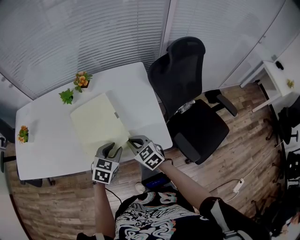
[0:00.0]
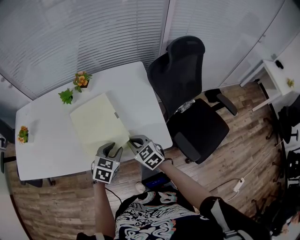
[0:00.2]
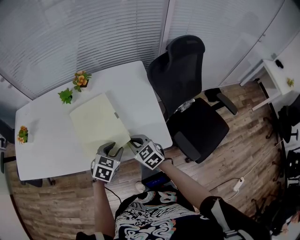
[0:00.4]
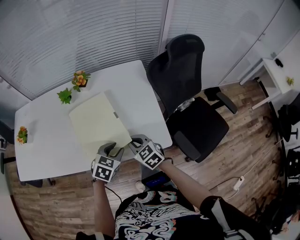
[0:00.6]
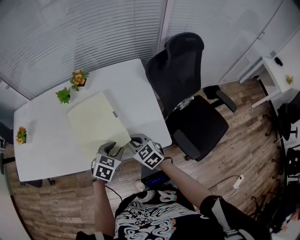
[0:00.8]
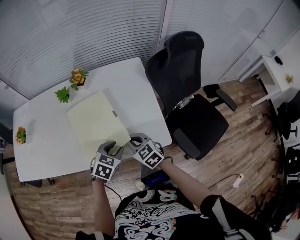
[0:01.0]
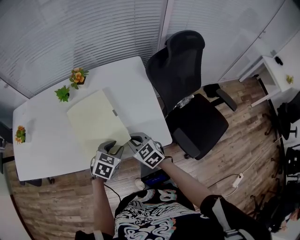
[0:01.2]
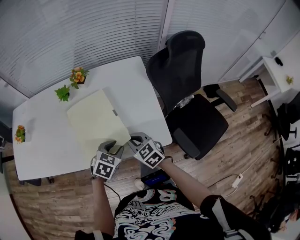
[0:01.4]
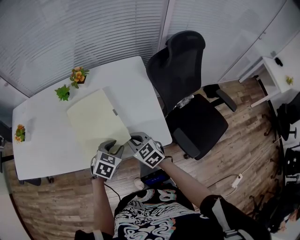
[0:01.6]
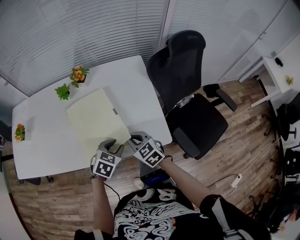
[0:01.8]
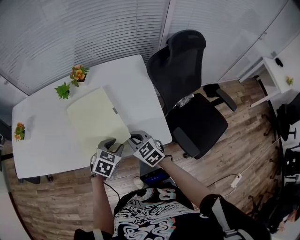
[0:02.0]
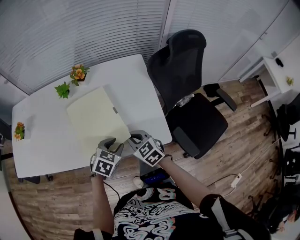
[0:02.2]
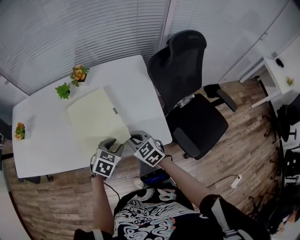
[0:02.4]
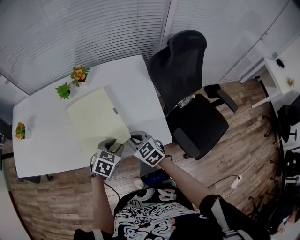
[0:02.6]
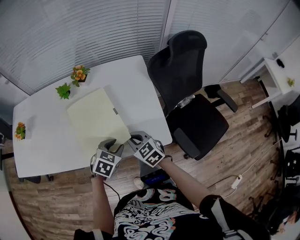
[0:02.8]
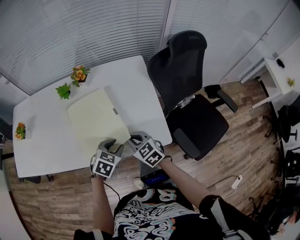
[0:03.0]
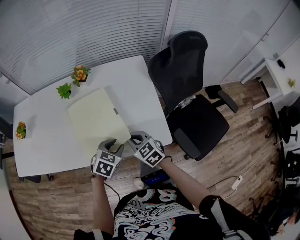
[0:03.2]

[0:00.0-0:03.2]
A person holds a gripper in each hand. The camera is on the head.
0:00.0 to 0:01.6: The grippers make only small movements.
0:01.6 to 0:03.2: Both grippers stay put.

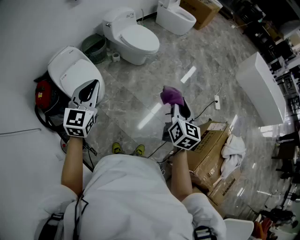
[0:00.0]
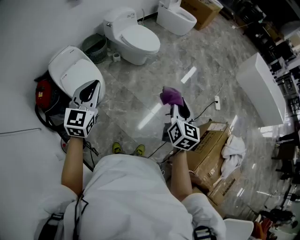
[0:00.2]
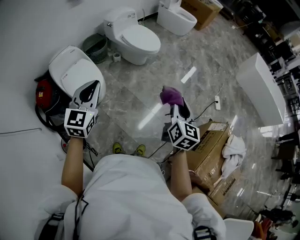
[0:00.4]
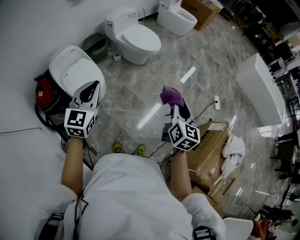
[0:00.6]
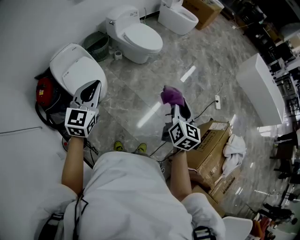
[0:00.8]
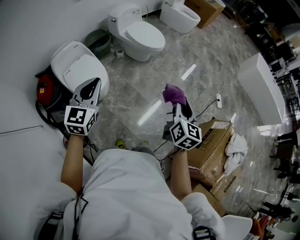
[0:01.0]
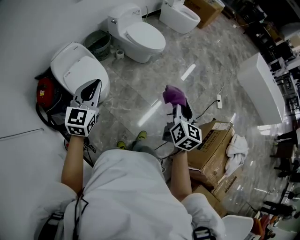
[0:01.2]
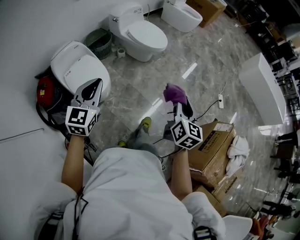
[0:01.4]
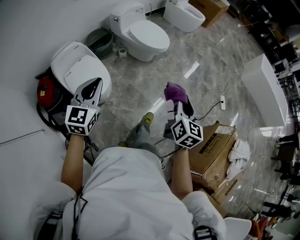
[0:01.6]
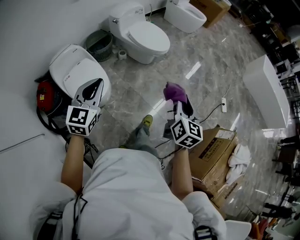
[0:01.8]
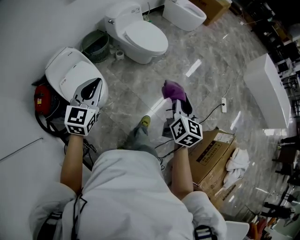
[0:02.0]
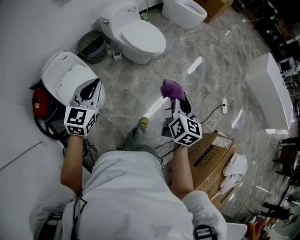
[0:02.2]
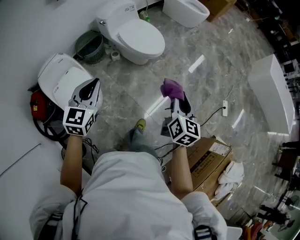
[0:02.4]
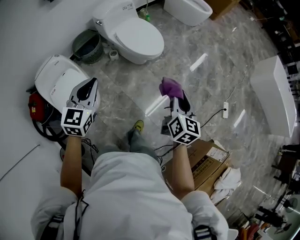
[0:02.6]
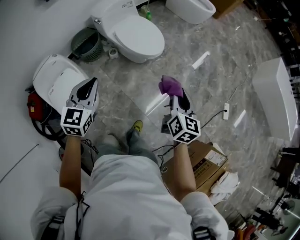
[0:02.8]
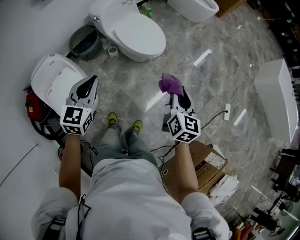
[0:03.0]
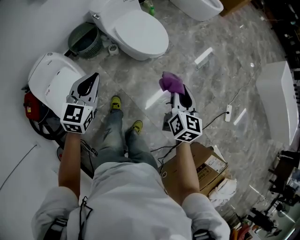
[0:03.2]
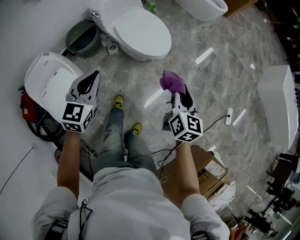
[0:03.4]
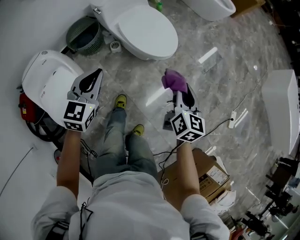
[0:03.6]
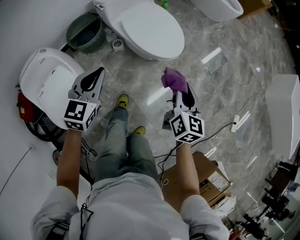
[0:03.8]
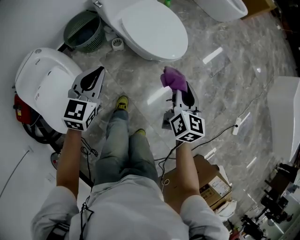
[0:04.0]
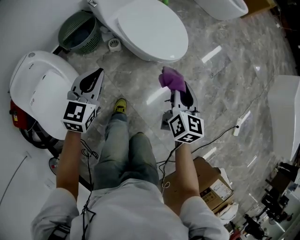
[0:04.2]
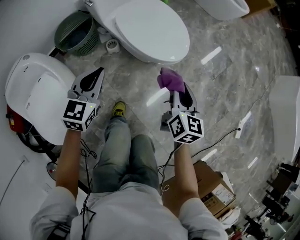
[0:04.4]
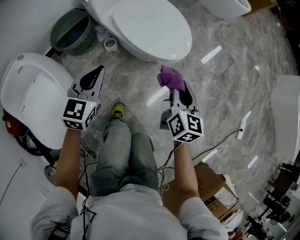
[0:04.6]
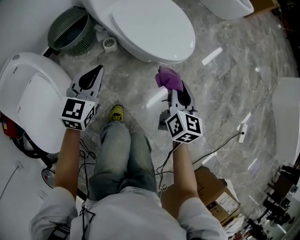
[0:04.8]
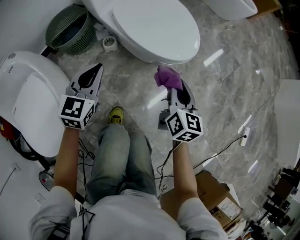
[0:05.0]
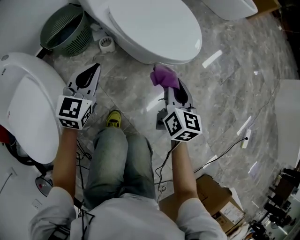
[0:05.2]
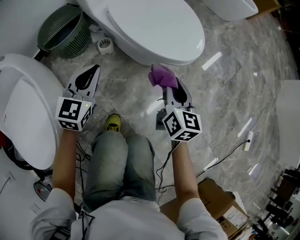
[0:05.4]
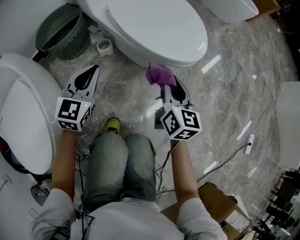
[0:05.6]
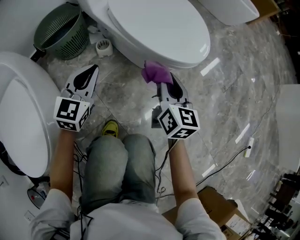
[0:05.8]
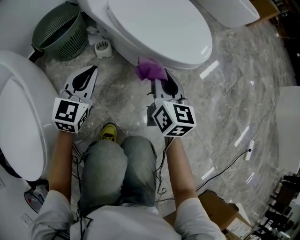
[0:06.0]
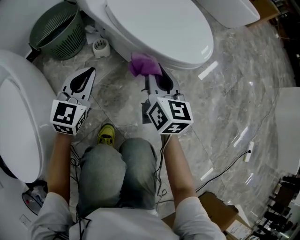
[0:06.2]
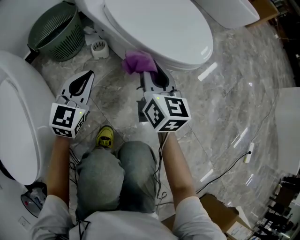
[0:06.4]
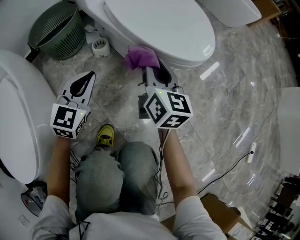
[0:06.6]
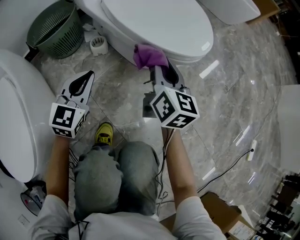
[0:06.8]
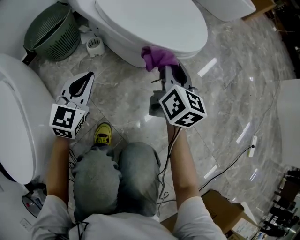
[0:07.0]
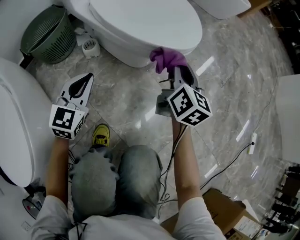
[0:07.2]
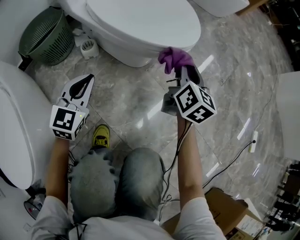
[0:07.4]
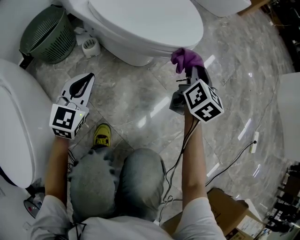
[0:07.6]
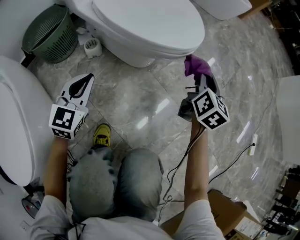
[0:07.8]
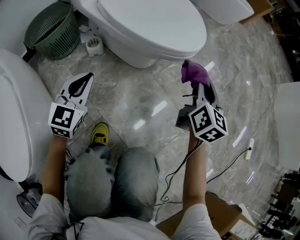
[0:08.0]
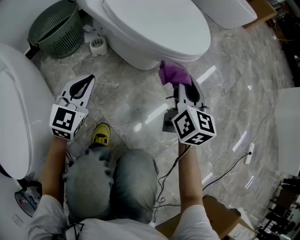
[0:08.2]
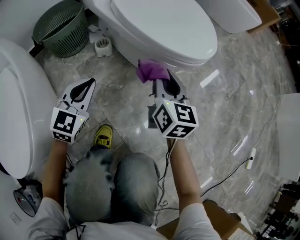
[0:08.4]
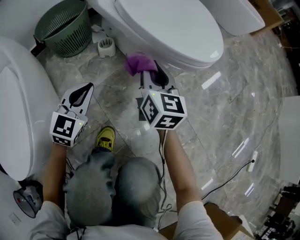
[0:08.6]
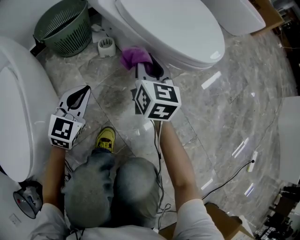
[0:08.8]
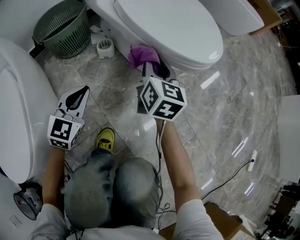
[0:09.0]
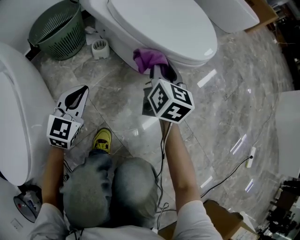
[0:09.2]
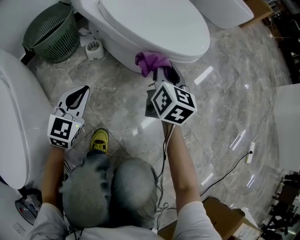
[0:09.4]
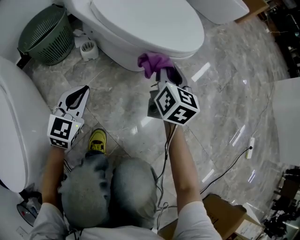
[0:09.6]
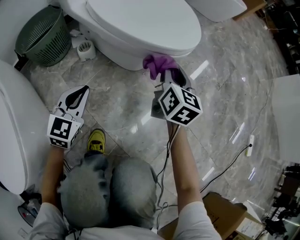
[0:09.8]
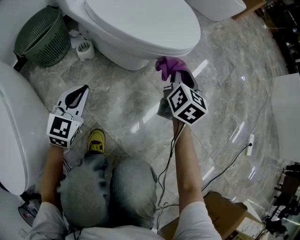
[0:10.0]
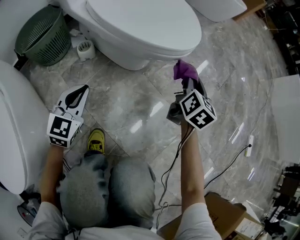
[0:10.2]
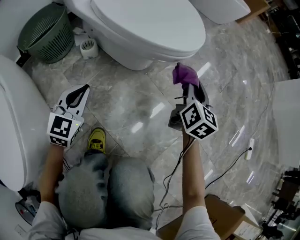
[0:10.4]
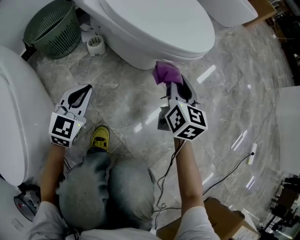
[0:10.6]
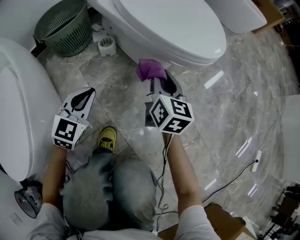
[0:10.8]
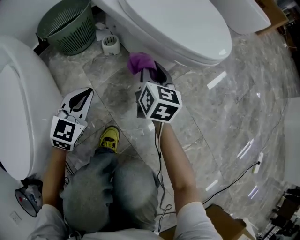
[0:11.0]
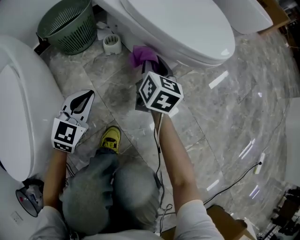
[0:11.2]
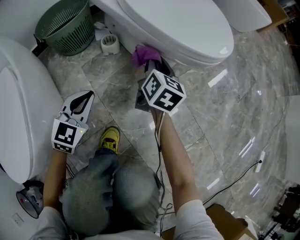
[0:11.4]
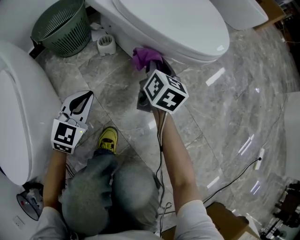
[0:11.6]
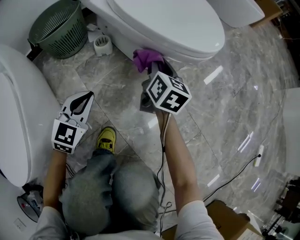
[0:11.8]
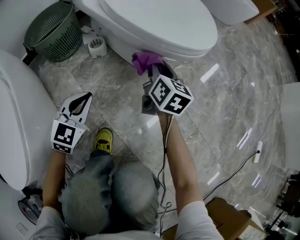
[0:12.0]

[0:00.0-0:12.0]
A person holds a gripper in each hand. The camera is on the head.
0:00.0 to 0:01.6: The right gripper heads to the left and forward, covering roughly 10 cm. The left gripper moves to the left, about 10 cm.
0:01.6 to 0:03.0: Both grippers travel together forward, roughly 40 cm.
0:03.0 to 0:04.4: The grippers both shift downward and forward by roughly 35 cm.
0:04.4 to 0:06.0: The grippers both shift downward by some 25 cm.
0:06.0 to 0:07.6: The right gripper heads to the right, covering roughly 20 cm, and rotates about 20 degrees. The left gripper travels downward and to the right by some 10 cm.
0:07.6 to 0:09.0: The right gripper goes roughly 25 cm to the left, and changes its angle by approximately 20 degrees. The left gripper moves to the left, about 5 cm.
0:09.0 to 0:10.4: The right gripper travels to the right by roughly 25 cm, while the left gripper shifts approximately 5 cm to the right.
0:10.4 to 0:12.0: The right gripper shifts approximately 15 cm to the left.

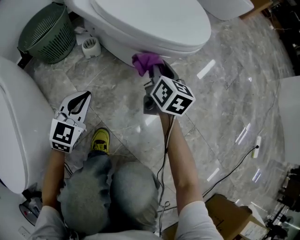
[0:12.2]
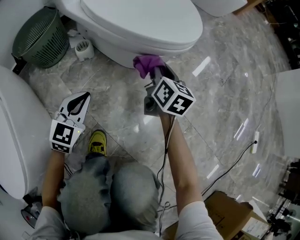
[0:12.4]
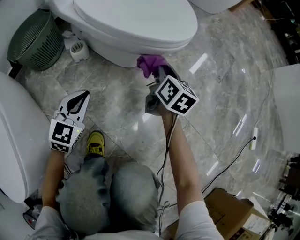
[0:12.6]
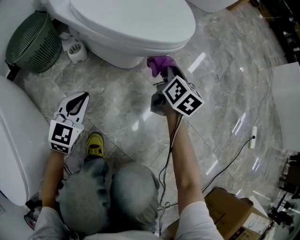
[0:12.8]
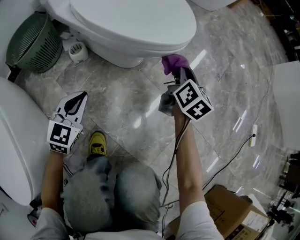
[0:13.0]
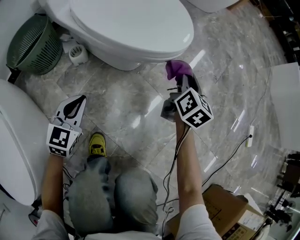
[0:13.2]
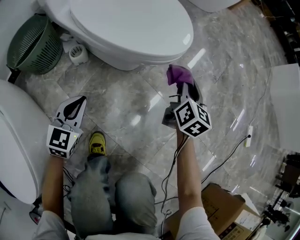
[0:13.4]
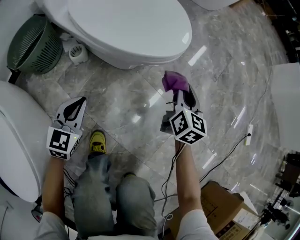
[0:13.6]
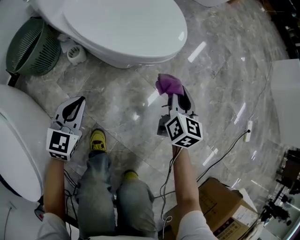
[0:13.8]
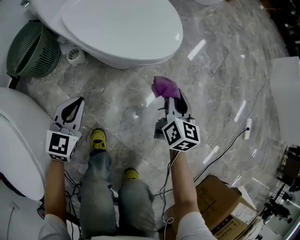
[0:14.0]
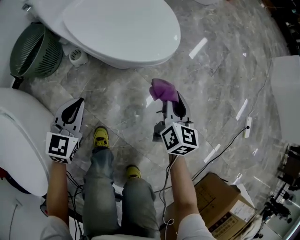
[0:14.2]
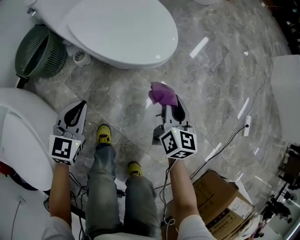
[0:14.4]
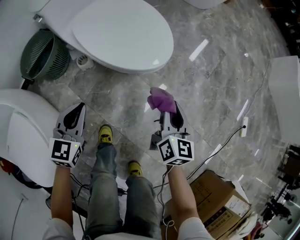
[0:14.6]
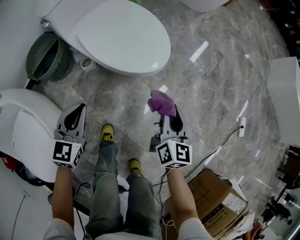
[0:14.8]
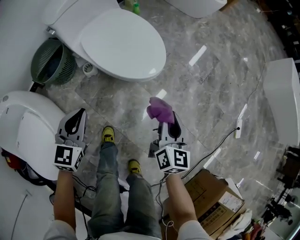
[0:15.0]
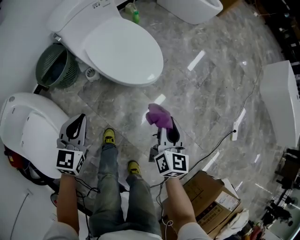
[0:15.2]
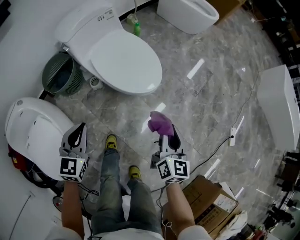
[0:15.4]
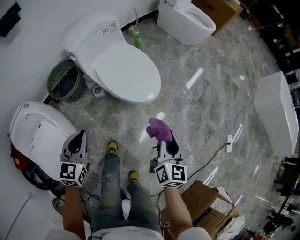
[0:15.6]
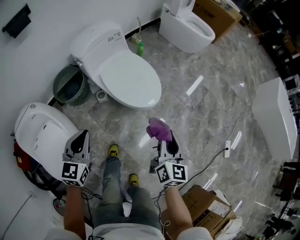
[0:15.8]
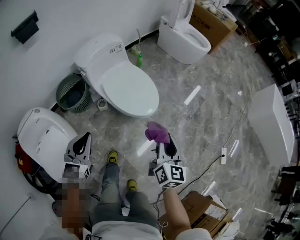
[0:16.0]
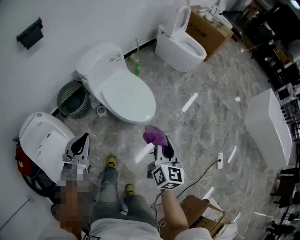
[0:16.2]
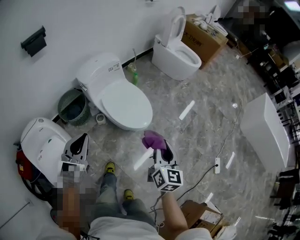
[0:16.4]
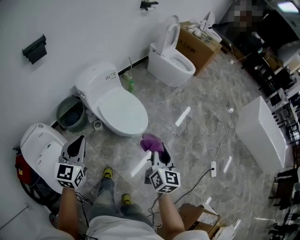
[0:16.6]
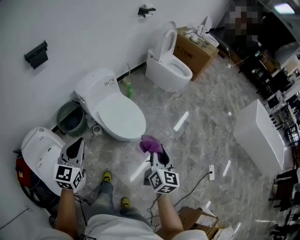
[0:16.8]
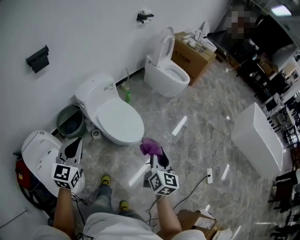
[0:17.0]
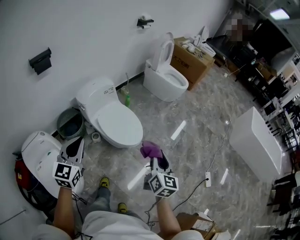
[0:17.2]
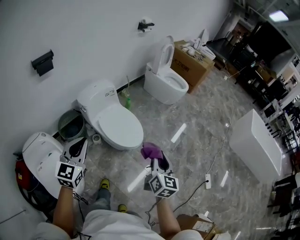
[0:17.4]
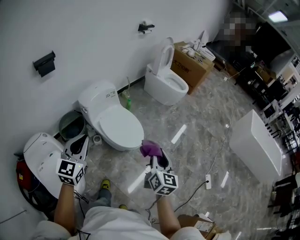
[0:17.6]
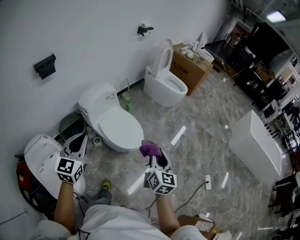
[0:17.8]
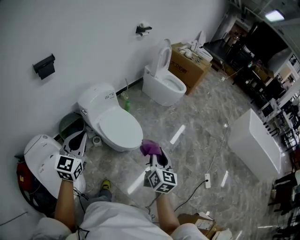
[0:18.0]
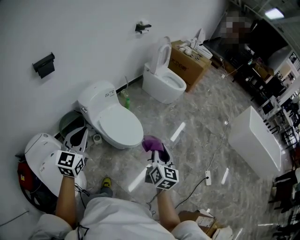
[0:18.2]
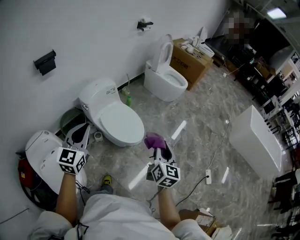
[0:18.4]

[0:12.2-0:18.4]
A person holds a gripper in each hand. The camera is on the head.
0:12.2 to 0:13.8: The left gripper goes approximately 5 cm upward. The right gripper heads to the right, covering about 15 cm.
0:13.8 to 0:15.4: Both grippers move upward, approximately 35 cm.
0:15.4 to 0:16.8: The two grippers go approximately 30 cm upward.
0:16.8 to 0:18.4: Both grippers move upward, about 10 cm.

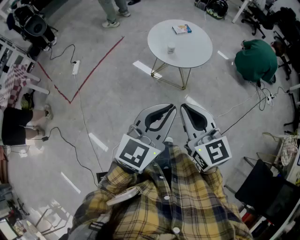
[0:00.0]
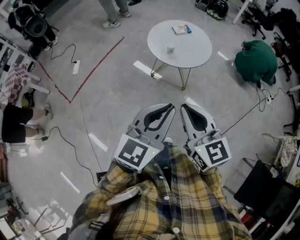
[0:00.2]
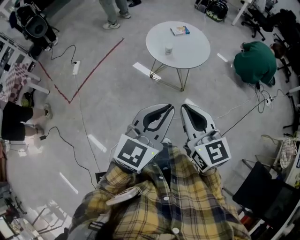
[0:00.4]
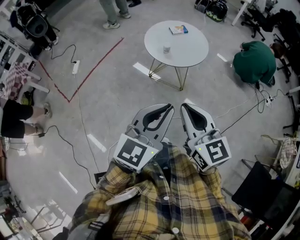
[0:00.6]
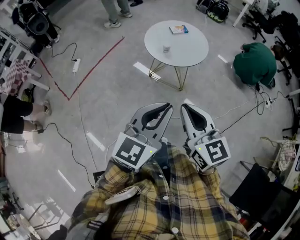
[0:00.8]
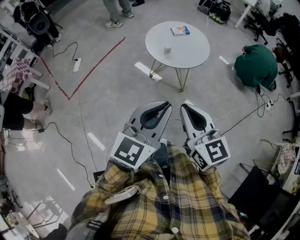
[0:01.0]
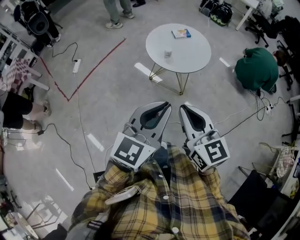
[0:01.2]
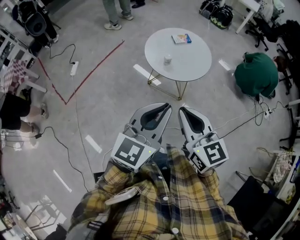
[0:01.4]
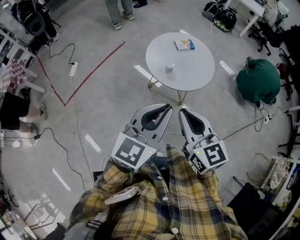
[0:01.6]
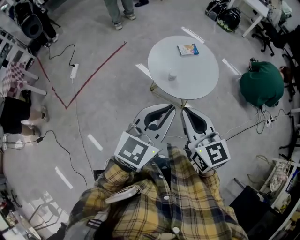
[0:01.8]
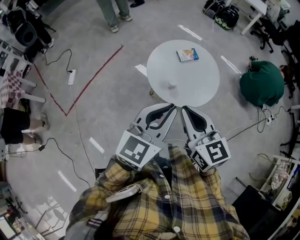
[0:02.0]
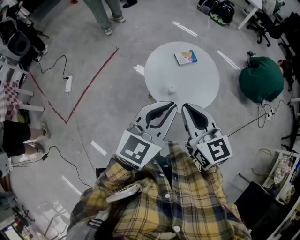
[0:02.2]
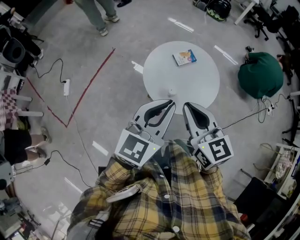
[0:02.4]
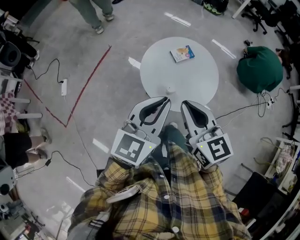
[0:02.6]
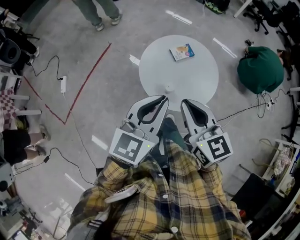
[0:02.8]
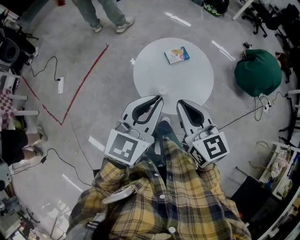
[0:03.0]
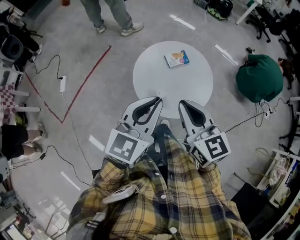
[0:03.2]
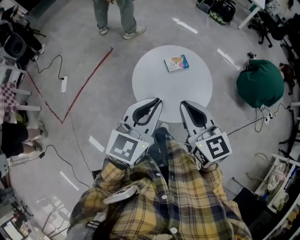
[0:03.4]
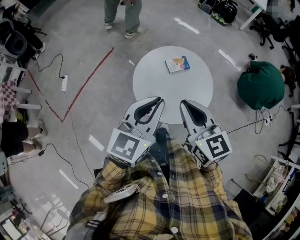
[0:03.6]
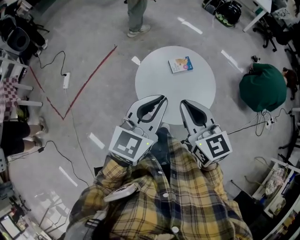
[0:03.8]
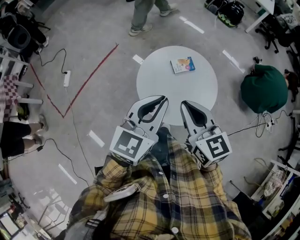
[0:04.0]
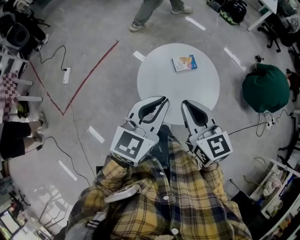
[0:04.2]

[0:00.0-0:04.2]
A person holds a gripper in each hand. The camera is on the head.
0:00.0 to 0:01.4: Both grippers travel together forward, some 5 cm.
0:01.4 to 0:02.8: The two grippers go some 30 cm forward.
0:02.8 to 0:04.2: Both grippers move forward, approximately 5 cm.
